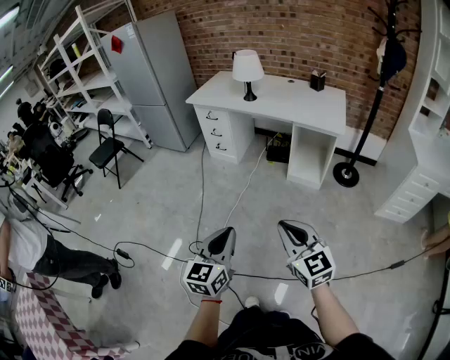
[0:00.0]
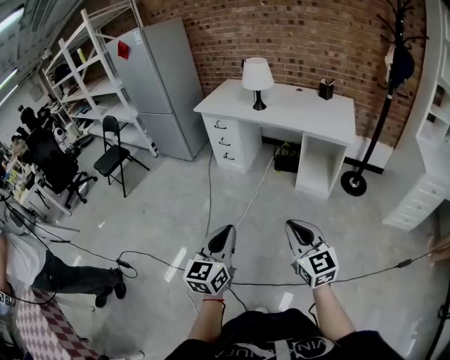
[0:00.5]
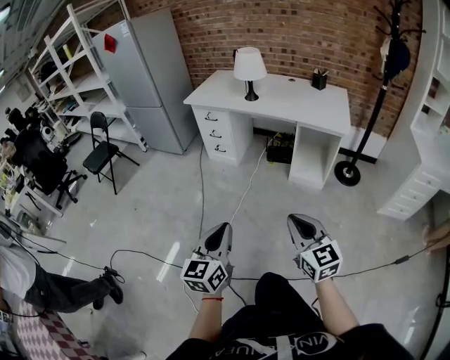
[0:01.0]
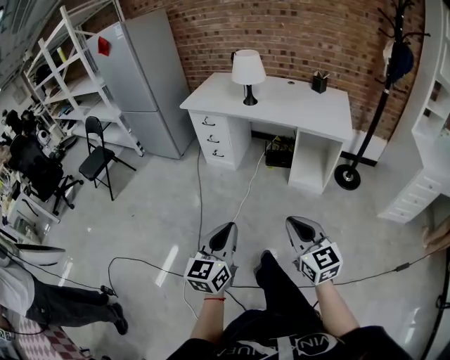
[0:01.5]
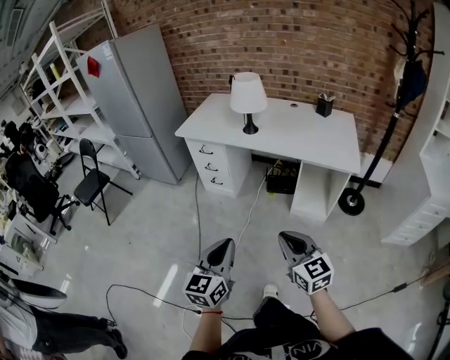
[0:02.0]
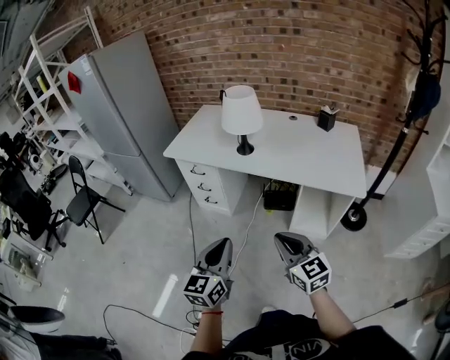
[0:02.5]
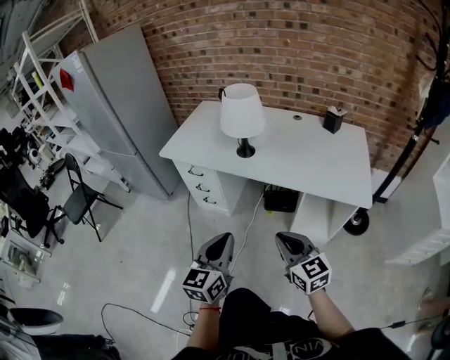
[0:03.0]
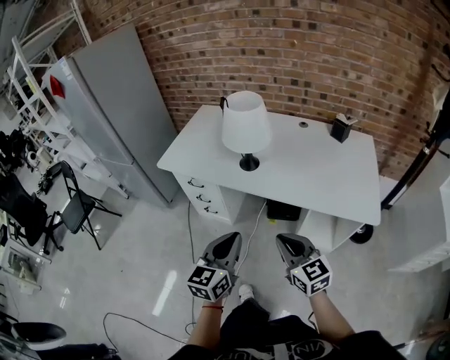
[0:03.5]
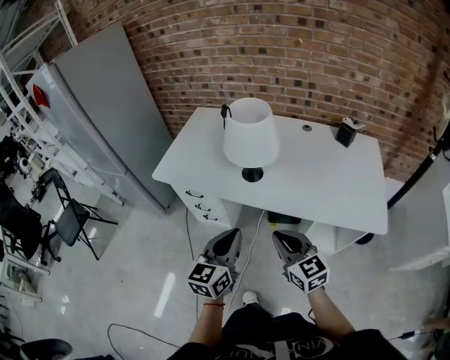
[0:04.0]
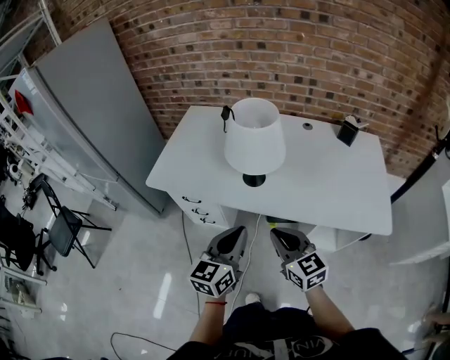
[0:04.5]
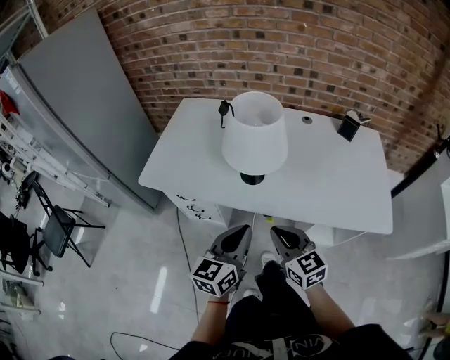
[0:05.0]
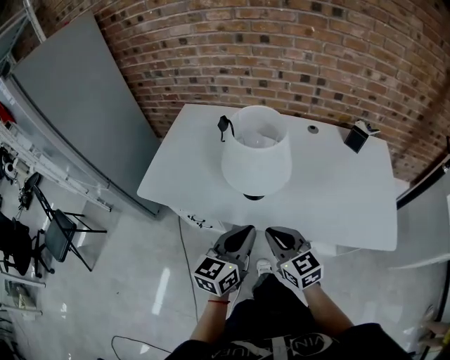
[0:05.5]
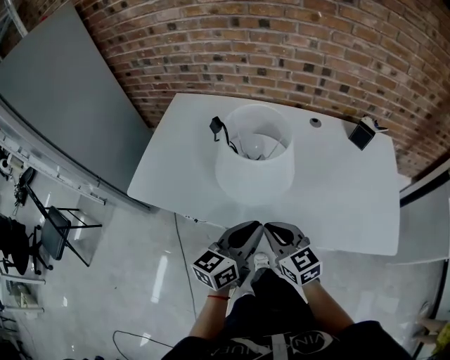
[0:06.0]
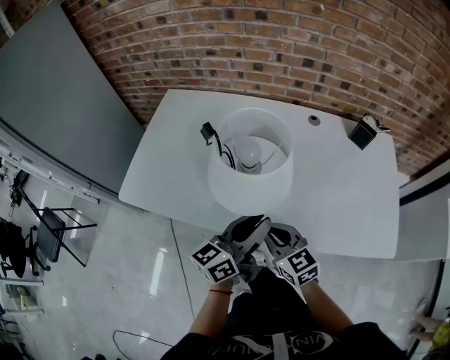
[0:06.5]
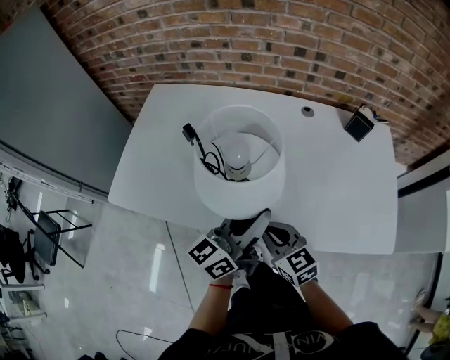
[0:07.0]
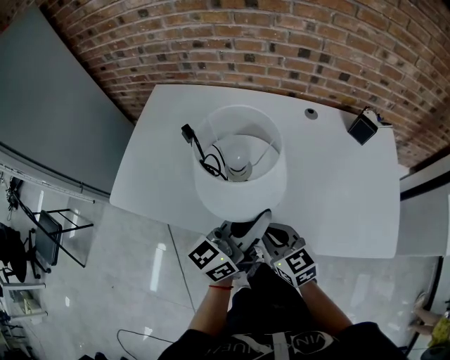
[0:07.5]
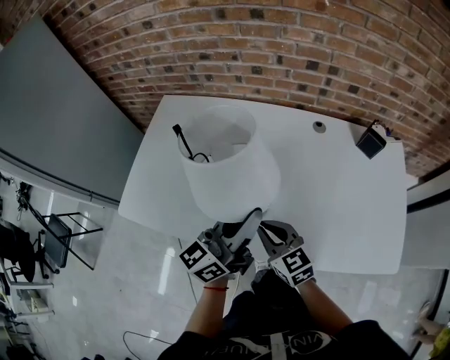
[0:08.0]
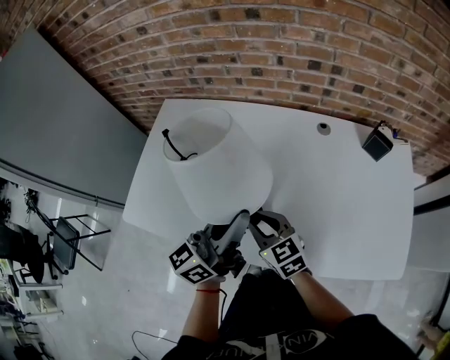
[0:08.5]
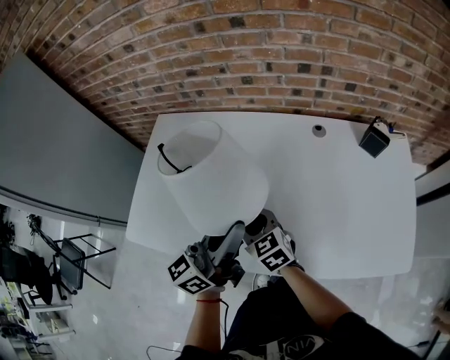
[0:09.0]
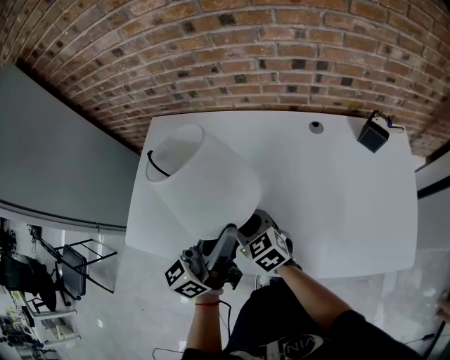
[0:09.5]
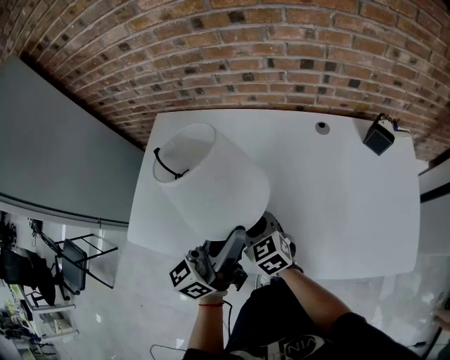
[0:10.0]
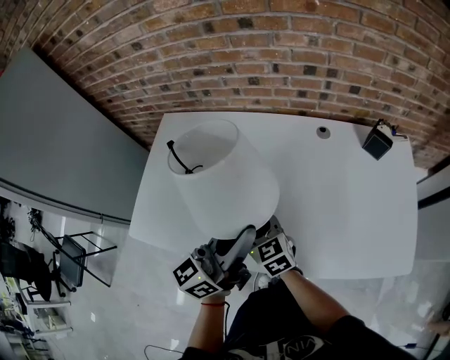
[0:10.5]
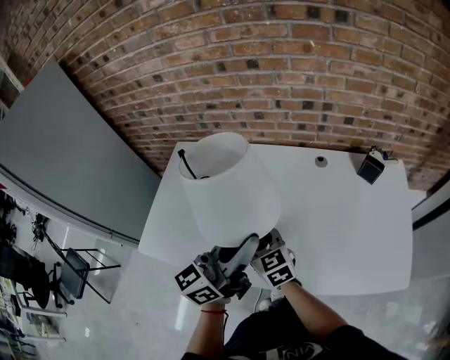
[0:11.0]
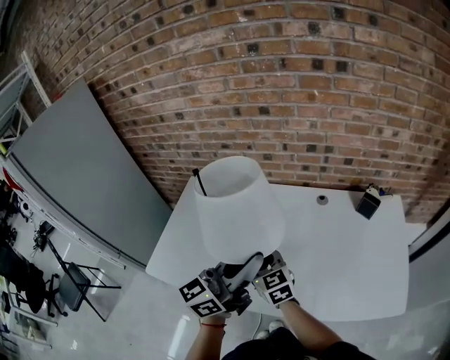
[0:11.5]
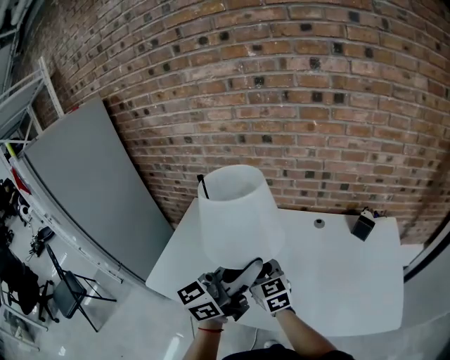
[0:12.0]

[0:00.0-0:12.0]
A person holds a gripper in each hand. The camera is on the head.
0:00.0 to 0:02.0: The grippers both shift forward by approximately 30 cm.
0:02.0 to 0:04.0: The pair of grippers is taken forward, approximately 40 cm.
0:04.0 to 0:06.0: Both grippers travel together forward, about 20 cm. The left gripper turns by about 20 degrees.
0:06.0 to 0:08.0: The left gripper moves forward and upward, roughly 15 cm. The right gripper goes about 10 cm forward.
0:08.0 to 0:10.0: The right gripper goes about 10 cm forward and to the left, and opens its fingers.
0:10.0 to 0:12.0: Both grippers move upward, about 15 cm.

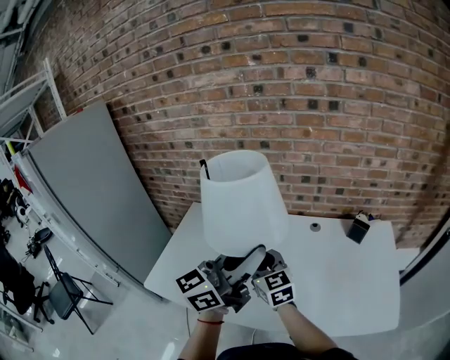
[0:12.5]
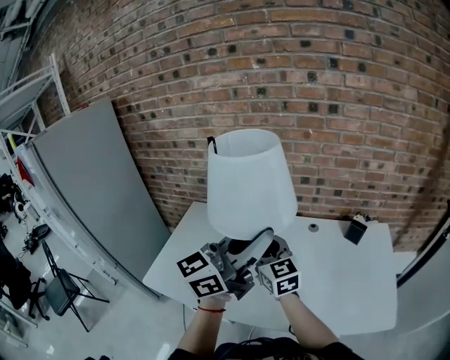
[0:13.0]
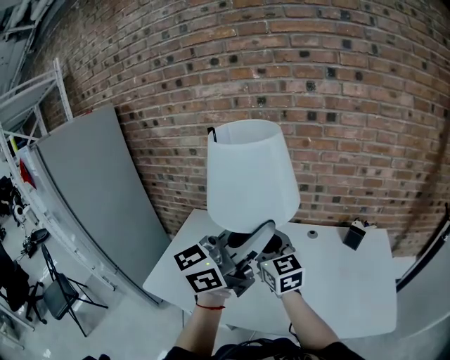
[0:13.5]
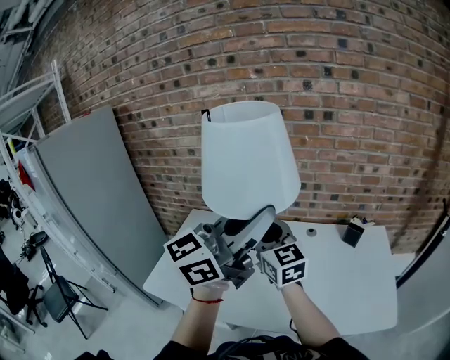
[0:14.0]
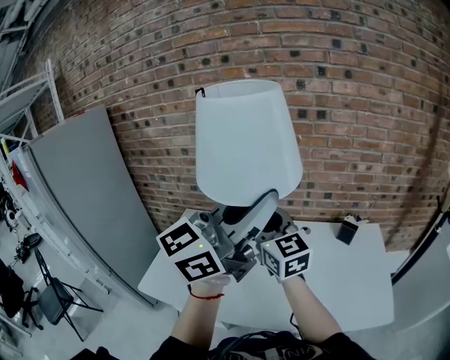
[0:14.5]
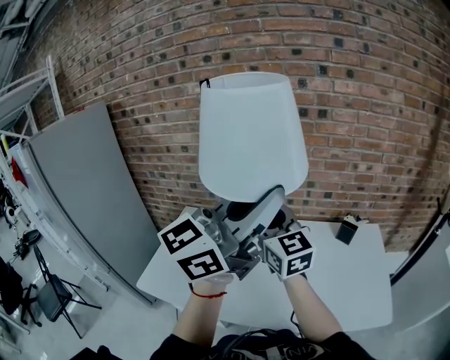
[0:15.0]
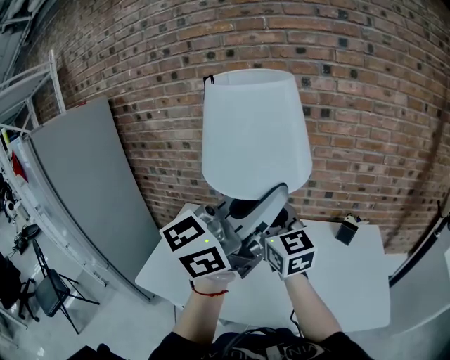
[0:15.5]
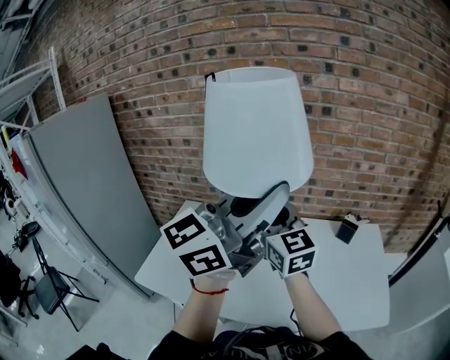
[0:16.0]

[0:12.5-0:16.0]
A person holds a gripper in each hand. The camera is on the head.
0:12.5 to 0:14.5: The grippers both shift upward by about 15 cm.
0:14.5 to 0:16.0: Both grippers stay put.

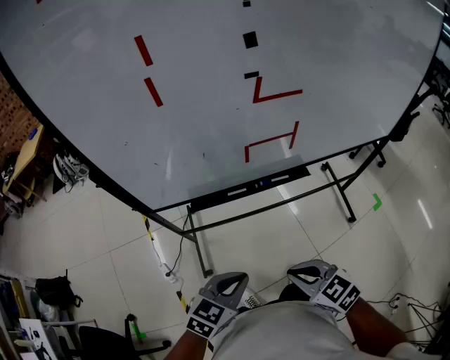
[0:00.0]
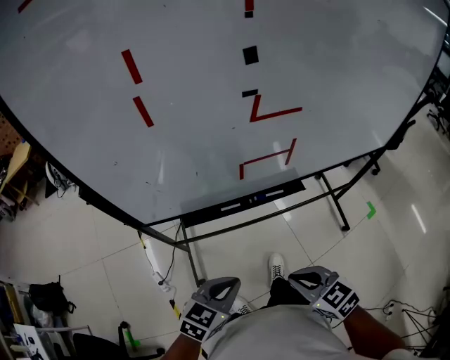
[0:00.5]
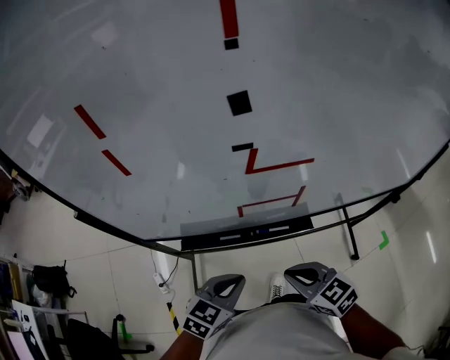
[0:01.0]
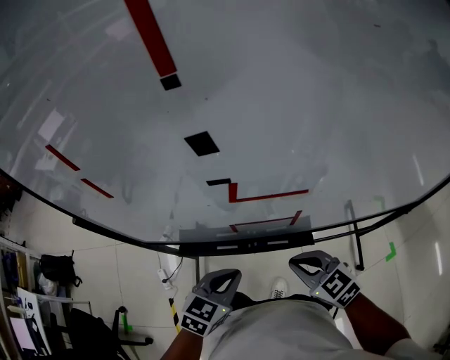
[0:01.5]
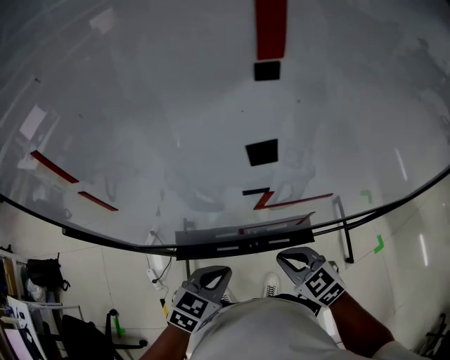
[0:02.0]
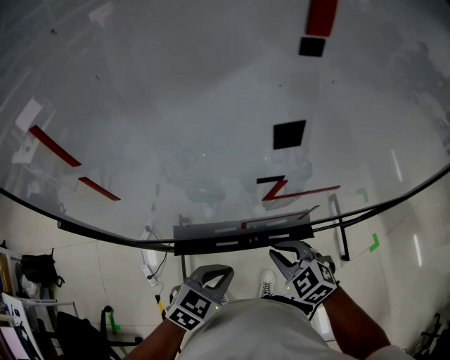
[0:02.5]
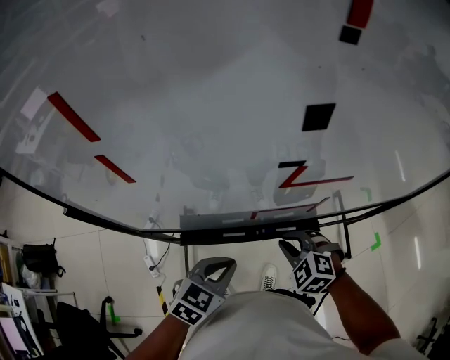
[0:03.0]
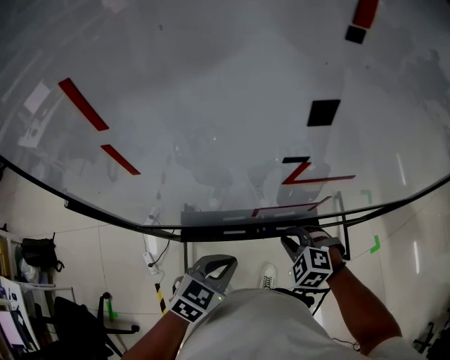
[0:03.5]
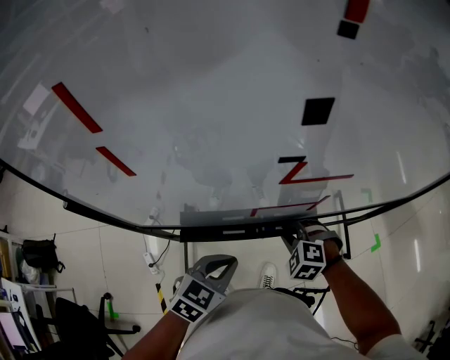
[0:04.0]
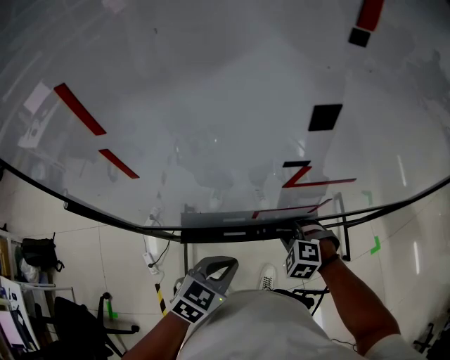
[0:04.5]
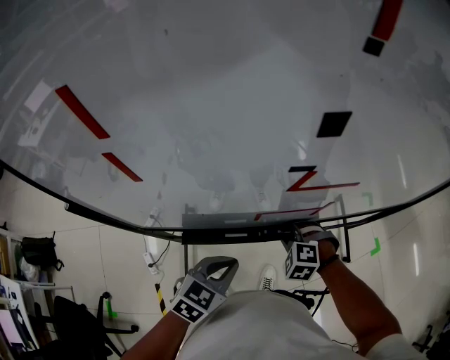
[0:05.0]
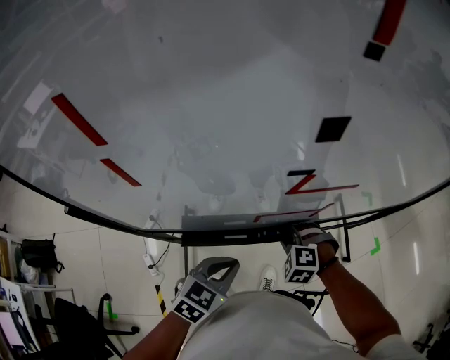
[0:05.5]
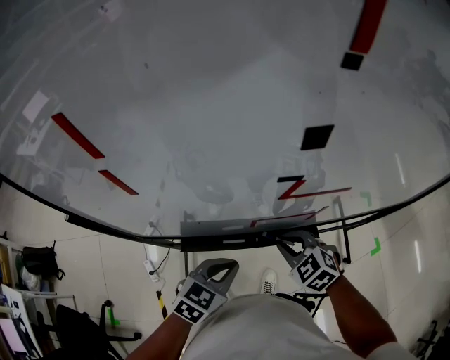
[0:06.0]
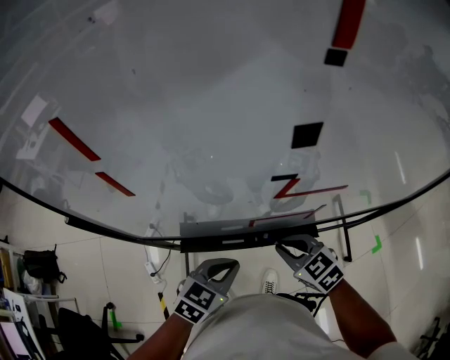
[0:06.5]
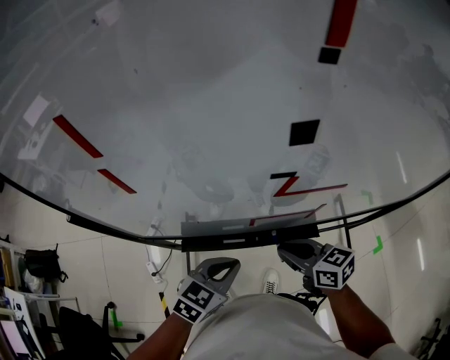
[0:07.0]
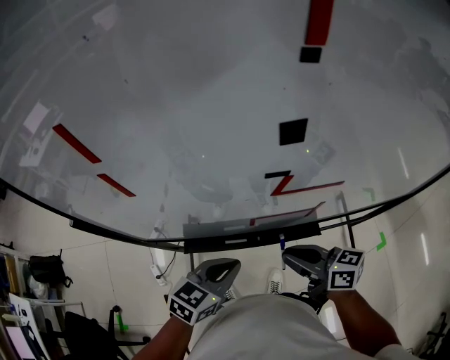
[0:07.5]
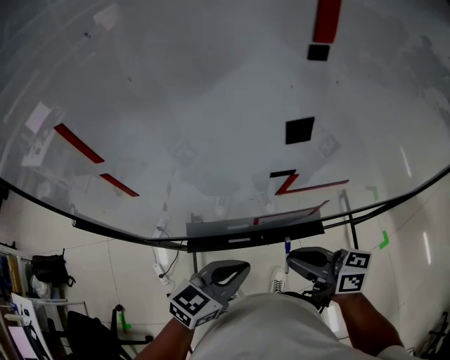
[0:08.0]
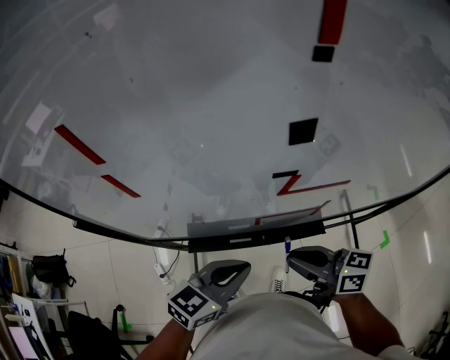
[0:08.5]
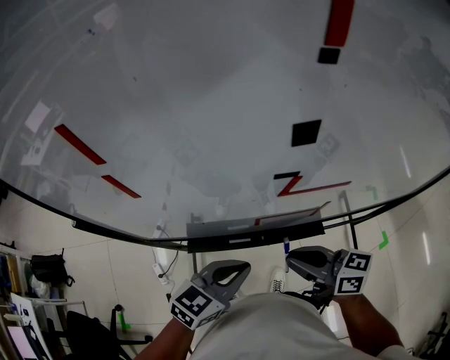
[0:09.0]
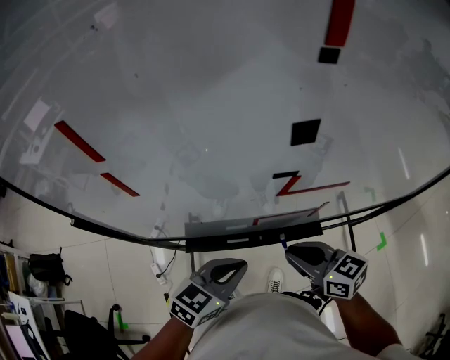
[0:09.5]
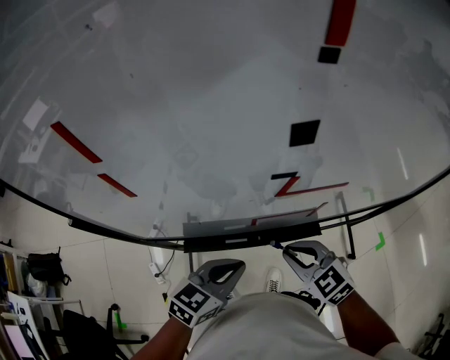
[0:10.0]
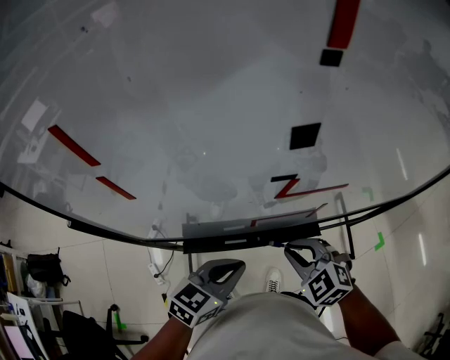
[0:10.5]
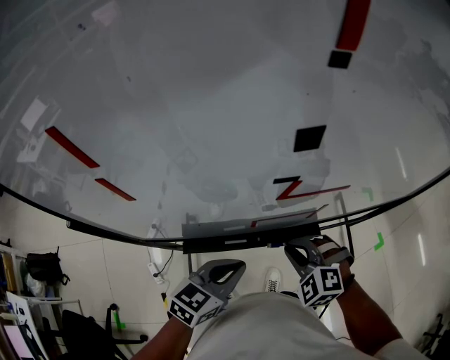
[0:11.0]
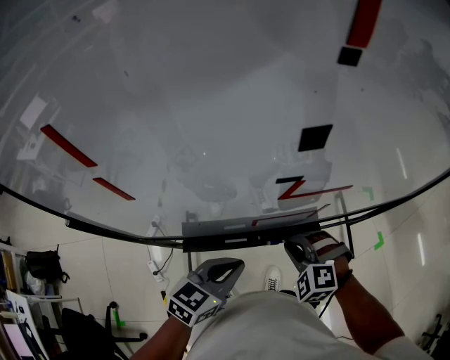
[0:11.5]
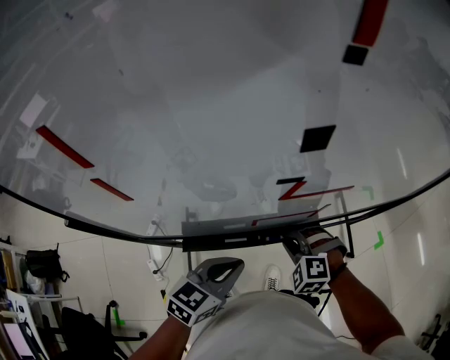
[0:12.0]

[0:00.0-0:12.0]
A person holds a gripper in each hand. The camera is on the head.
0:00.0 to 0:02.0: Both grippers move forward, about 25 cm.
0:02.0 to 0:04.0: The right gripper heads downward, covering roughly 10 cm, and swivels approximately 40 degrees.
0:04.0 to 0:06.0: The right gripper shifts approximately 5 cm upward, and rotates roughly 30 degrees.
0:06.0 to 0:08.0: The right gripper moves upward, about 10 cm, and tilts its fingers approximately 40 degrees upward. Meanwhile the left gripper is displaced upward by approximately 5 cm.
0:08.0 to 0:10.0: The right gripper twists some 40 degrees counterclockwise, seen from behind.
0:10.0 to 0:12.0: The right gripper travels downward by about 10 cm, and changes its angle by roughly 40 degrees.
